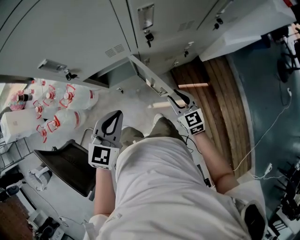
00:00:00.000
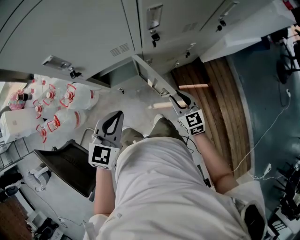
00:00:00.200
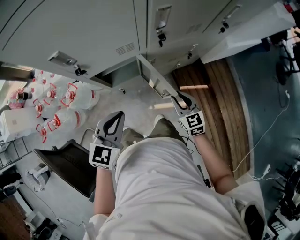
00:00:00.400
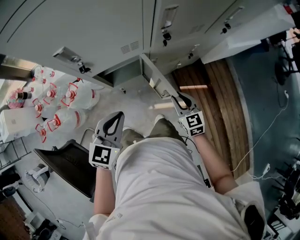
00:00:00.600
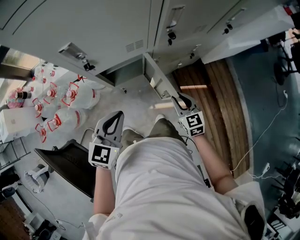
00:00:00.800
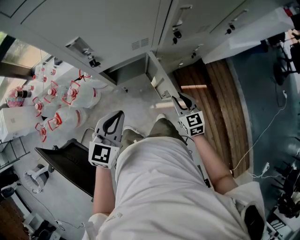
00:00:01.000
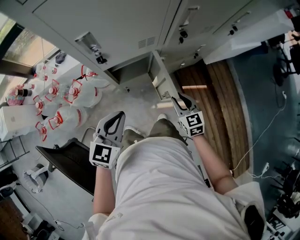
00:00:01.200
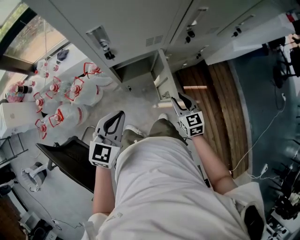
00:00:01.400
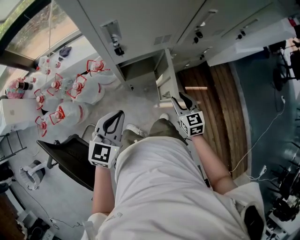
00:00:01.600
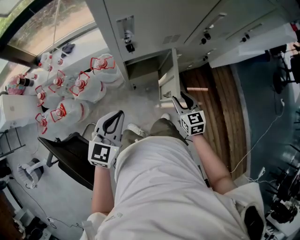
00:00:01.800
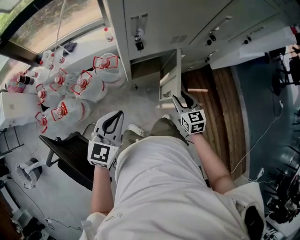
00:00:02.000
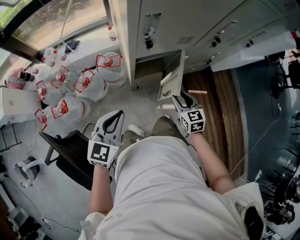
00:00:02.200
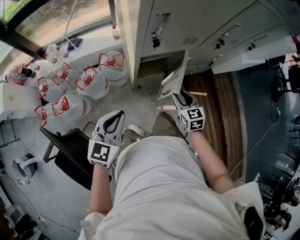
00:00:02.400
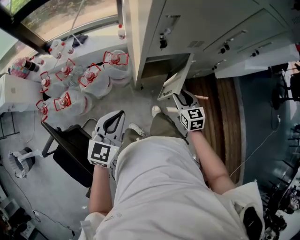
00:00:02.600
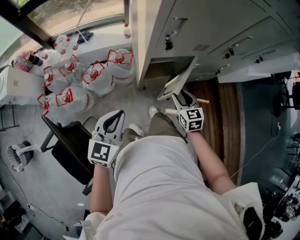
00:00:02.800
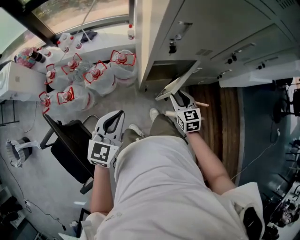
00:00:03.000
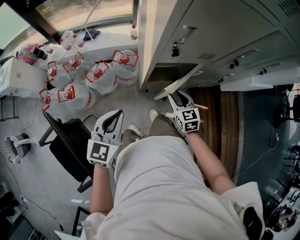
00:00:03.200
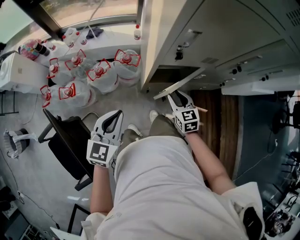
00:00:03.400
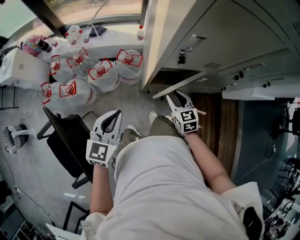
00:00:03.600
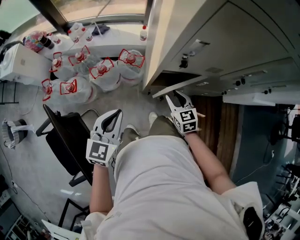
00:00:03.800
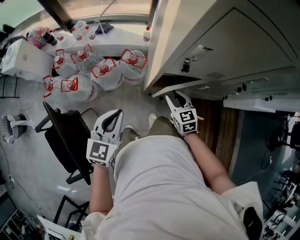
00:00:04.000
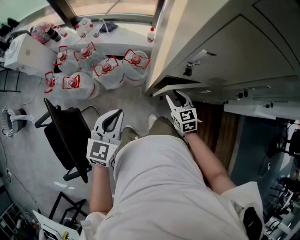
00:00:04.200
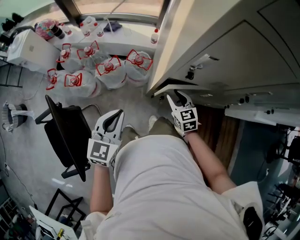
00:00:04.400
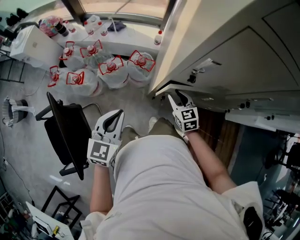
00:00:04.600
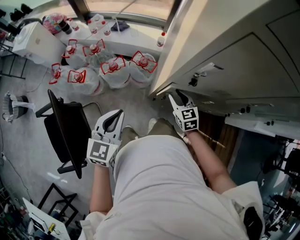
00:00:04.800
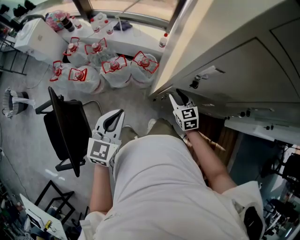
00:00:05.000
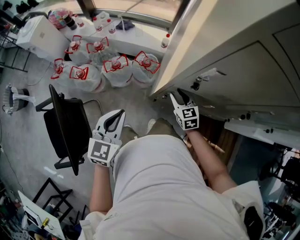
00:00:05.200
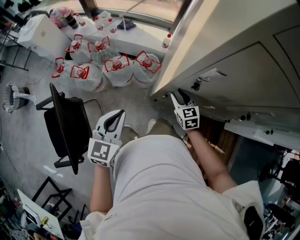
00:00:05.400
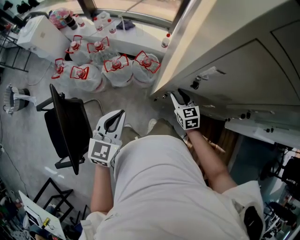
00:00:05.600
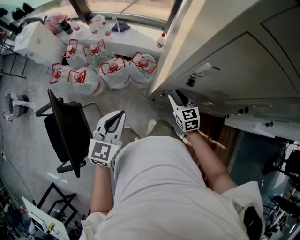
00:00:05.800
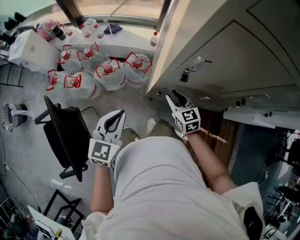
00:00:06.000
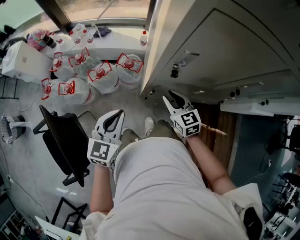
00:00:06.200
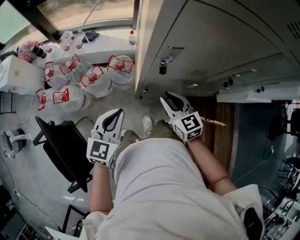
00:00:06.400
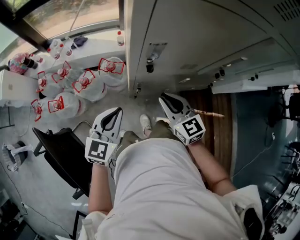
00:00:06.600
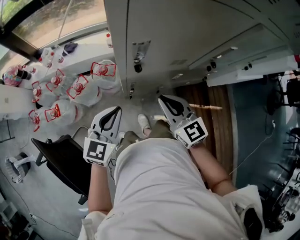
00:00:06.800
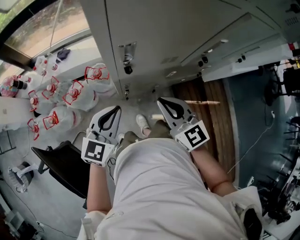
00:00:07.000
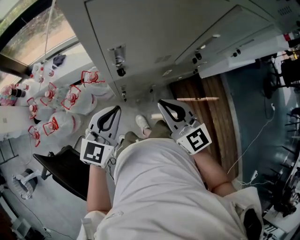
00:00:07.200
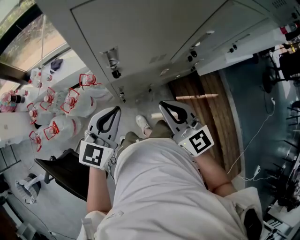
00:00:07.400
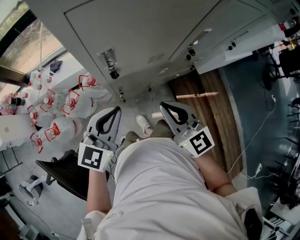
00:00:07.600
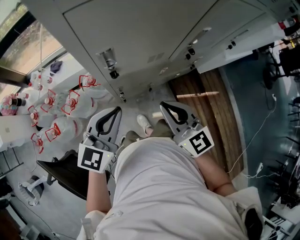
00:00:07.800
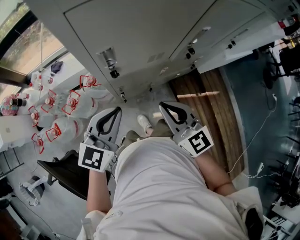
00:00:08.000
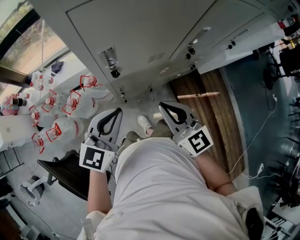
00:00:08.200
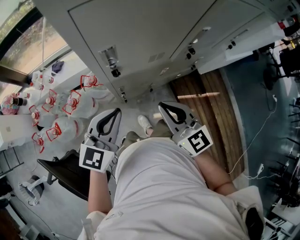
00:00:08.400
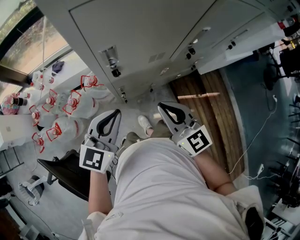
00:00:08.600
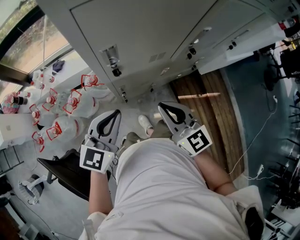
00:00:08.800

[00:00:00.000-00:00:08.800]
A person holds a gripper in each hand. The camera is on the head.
00:00:00.000 to 00:00:01.400: Both grippers travel together to the left, some 10 cm.
00:00:01.400 to 00:00:03.000: The grippers both shift to the left by some 15 cm.
00:00:03.000 to 00:00:04.400: The right gripper goes roughly 10 cm forward and to the left, and rotates approximately 20 degrees.
00:00:04.400 to 00:00:05.800: There are only small adjustments of the grippers.
00:00:05.800 to 00:00:07.400: The left gripper moves roughly 20 cm, and rotates about 40 degrees. The right gripper travels upward by about 20 cm, changes its angle by approximately 30 degrees, and closes its fingers.
00:00:07.400 to 00:00:08.800: The grippers make only small movements.

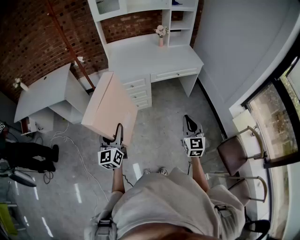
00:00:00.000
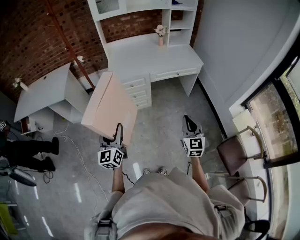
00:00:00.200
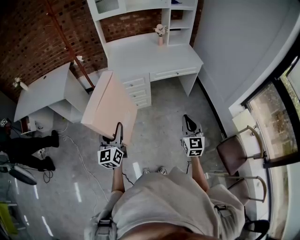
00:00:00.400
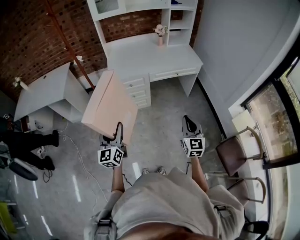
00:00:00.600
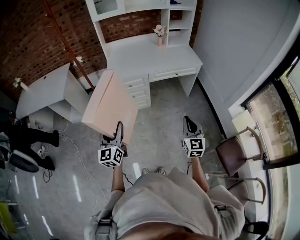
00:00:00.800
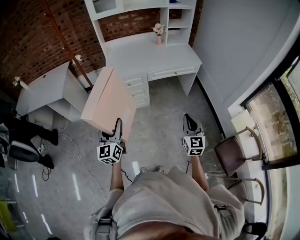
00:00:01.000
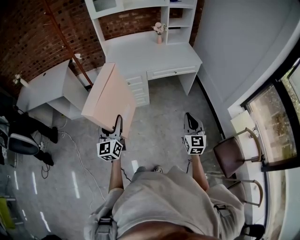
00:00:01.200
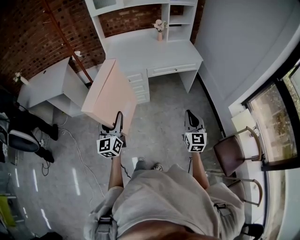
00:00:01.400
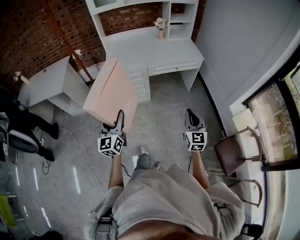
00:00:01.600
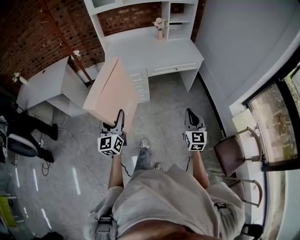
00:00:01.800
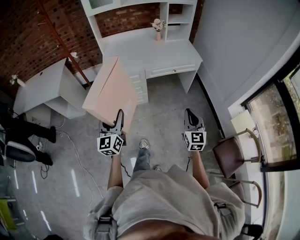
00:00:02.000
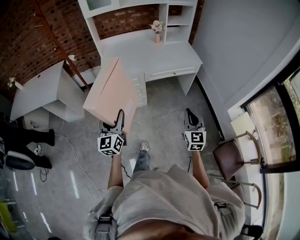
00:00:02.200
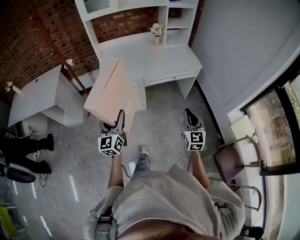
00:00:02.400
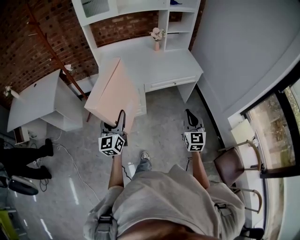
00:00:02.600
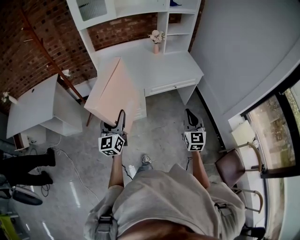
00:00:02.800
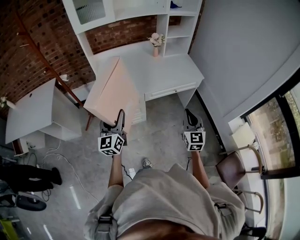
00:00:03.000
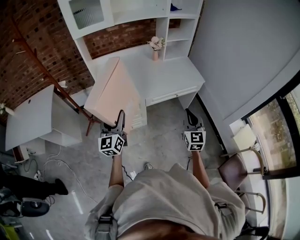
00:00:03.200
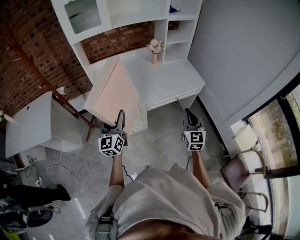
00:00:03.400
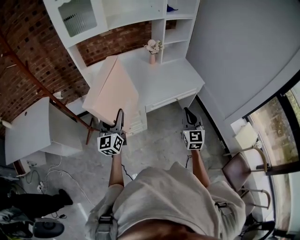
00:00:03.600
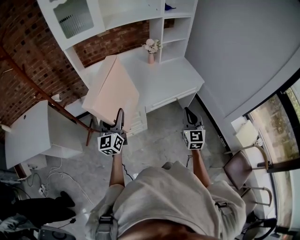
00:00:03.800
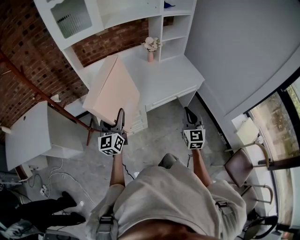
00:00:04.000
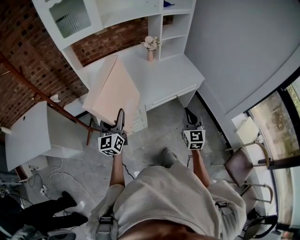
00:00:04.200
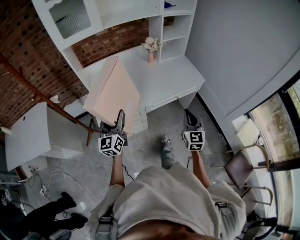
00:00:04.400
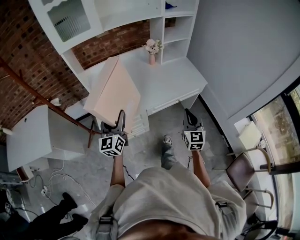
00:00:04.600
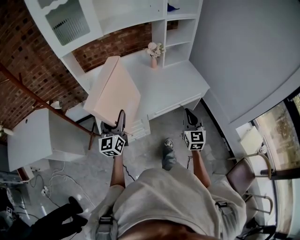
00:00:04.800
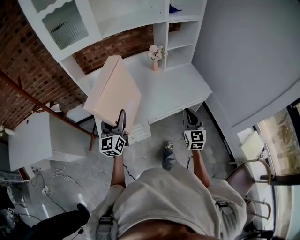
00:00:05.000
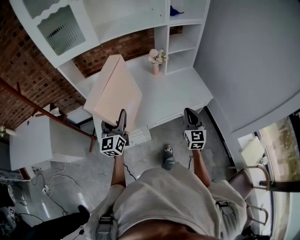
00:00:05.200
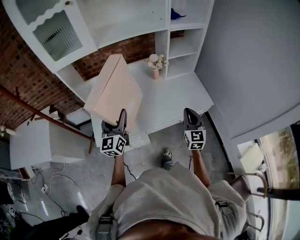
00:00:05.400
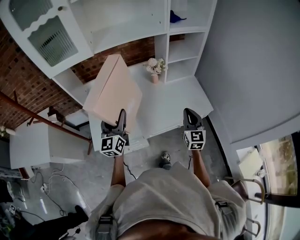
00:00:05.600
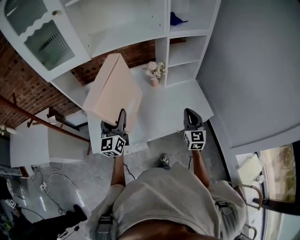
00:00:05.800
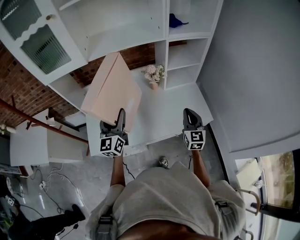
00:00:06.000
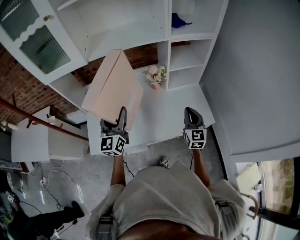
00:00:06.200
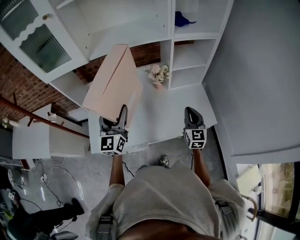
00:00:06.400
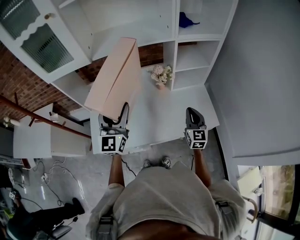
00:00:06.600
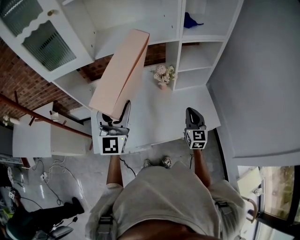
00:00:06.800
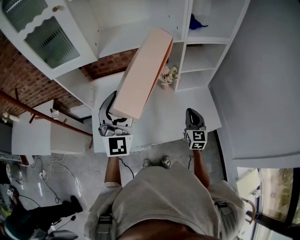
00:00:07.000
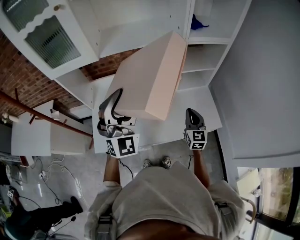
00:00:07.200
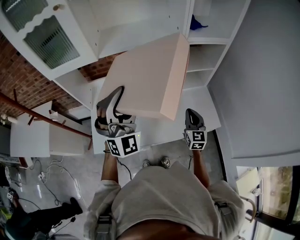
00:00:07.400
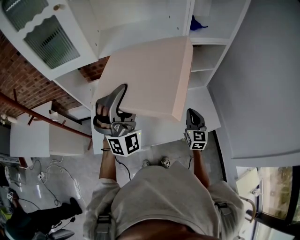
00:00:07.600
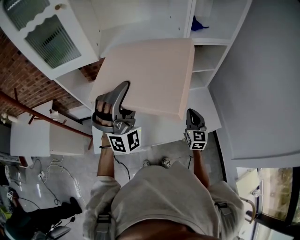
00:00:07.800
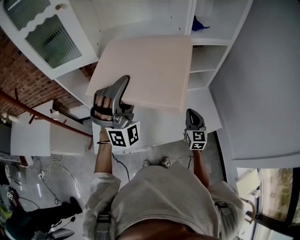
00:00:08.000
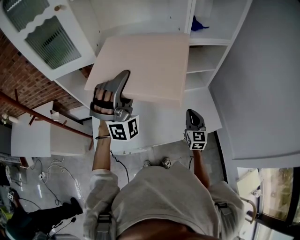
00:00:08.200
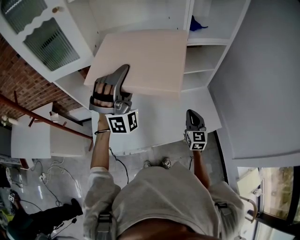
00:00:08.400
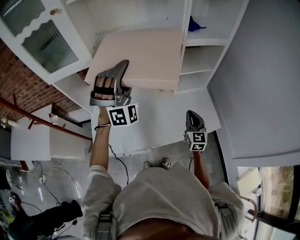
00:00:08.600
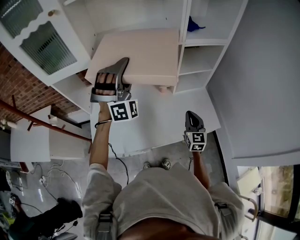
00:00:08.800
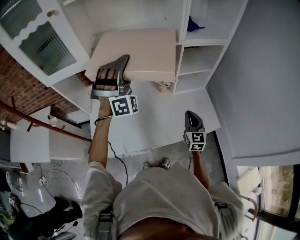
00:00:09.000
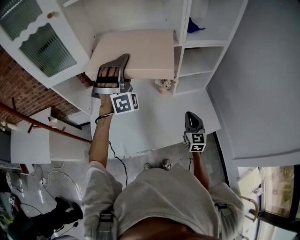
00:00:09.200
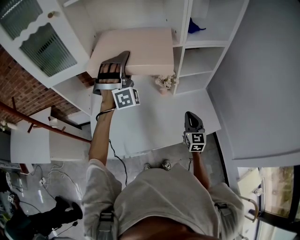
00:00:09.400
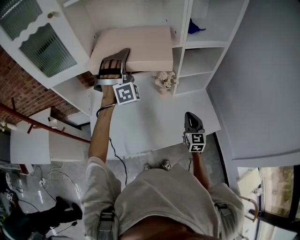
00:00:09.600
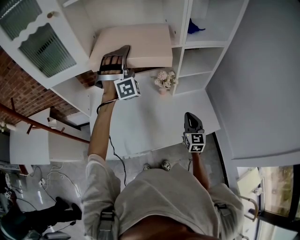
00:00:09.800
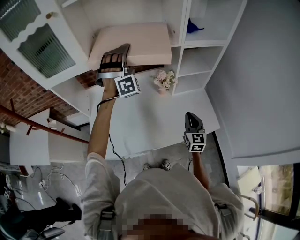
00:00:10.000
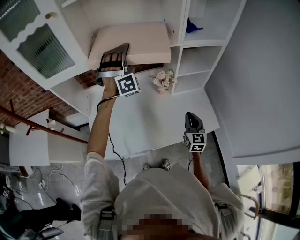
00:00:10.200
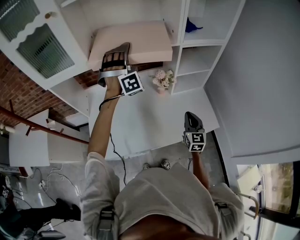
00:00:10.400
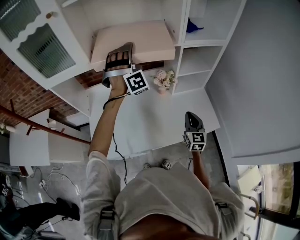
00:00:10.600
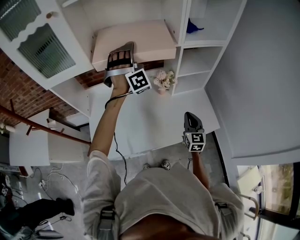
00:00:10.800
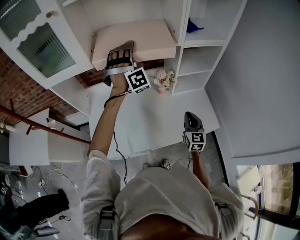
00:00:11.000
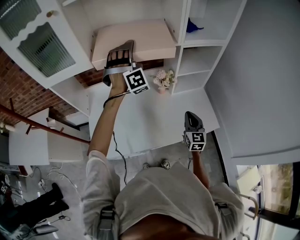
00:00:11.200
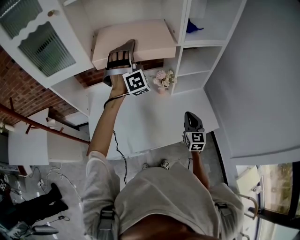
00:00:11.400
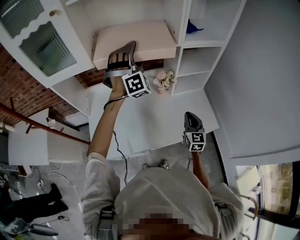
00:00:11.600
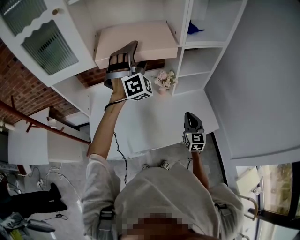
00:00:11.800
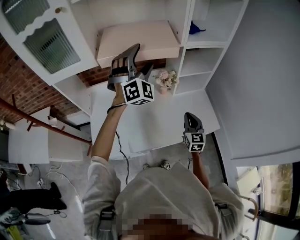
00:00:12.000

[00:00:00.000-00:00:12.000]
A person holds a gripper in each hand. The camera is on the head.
00:00:00.000 to 00:00:01.600: Both grippers move to the right, approximately 5 cm.
00:00:01.600 to 00:00:03.000: Both grippers travel together forward, about 25 cm.
00:00:03.000 to 00:00:04.400: Both grippers travel together forward, roughly 15 cm.
00:00:04.400 to 00:00:06.000: Both grippers travel together forward, roughly 30 cm.
00:00:06.000 to 00:00:07.600: The right gripper heads forward, covering approximately 5 cm, while the left gripper goes approximately 15 cm upward and to the right, and twists some 70 degrees clockwise, seen from behind.
00:00:07.600 to 00:00:09.000: The left gripper shifts approximately 15 cm forward, and turns by roughly 20 degrees.
00:00:09.000 to 00:00:10.400: The left gripper heads forward, covering roughly 10 cm.
00:00:10.400 to 00:00:12.000: The left gripper goes roughly 5 cm backward, and turns by about 30 degrees.

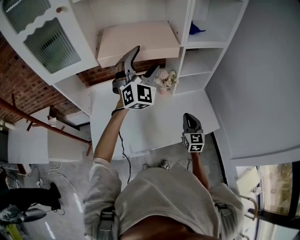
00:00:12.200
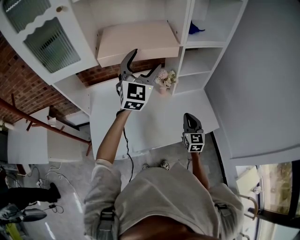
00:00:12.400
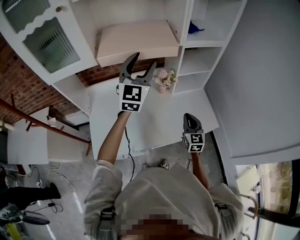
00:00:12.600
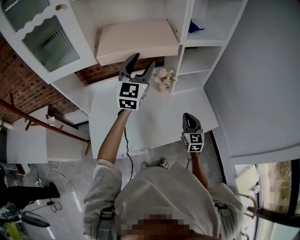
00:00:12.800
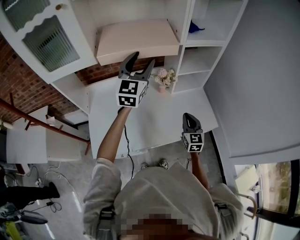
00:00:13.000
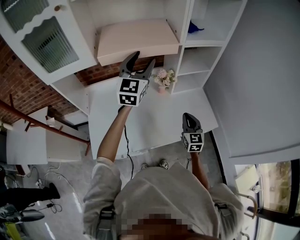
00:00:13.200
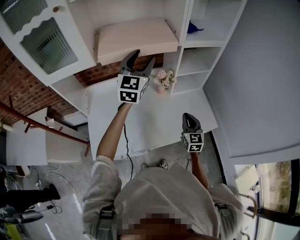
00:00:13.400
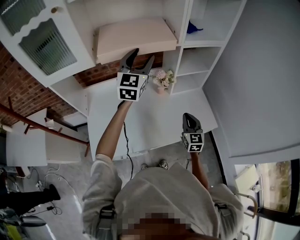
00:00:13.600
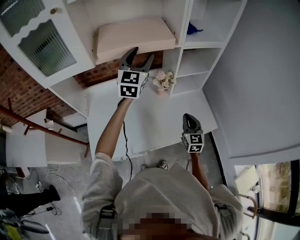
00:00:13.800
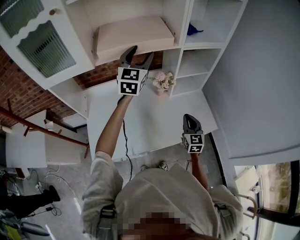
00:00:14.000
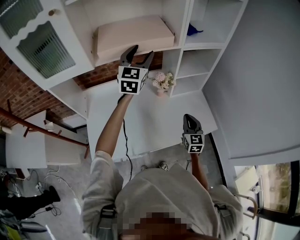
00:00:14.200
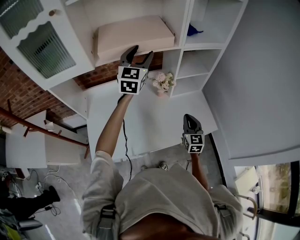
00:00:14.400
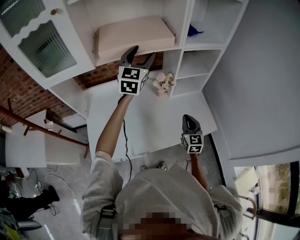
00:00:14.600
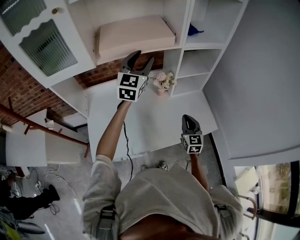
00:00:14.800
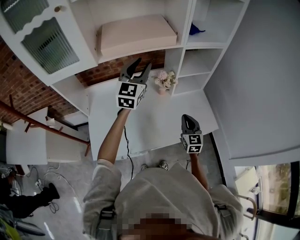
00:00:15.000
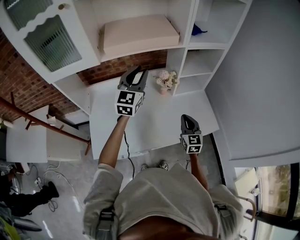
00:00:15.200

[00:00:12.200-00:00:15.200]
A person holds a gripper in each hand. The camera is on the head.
00:00:12.200 to 00:00:13.800: The left gripper is displaced forward by some 5 cm, turns by about 40 degrees, and closes its fingers.
00:00:13.800 to 00:00:15.200: The left gripper heads backward and downward, covering roughly 10 cm.
